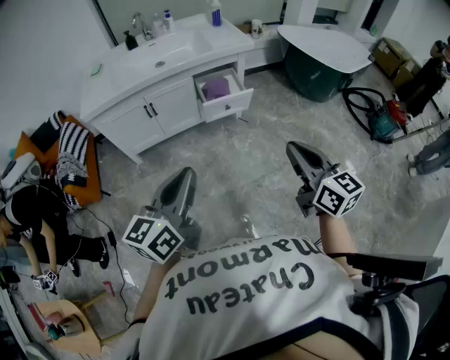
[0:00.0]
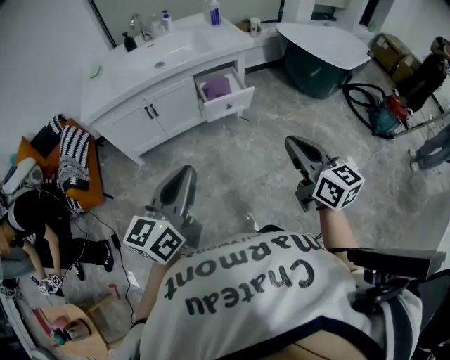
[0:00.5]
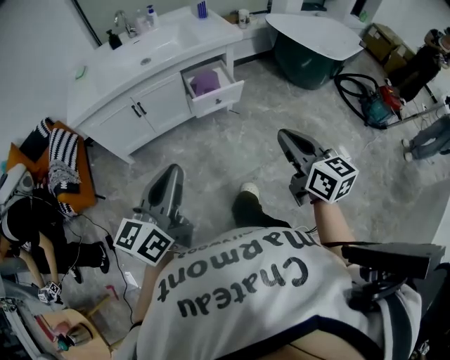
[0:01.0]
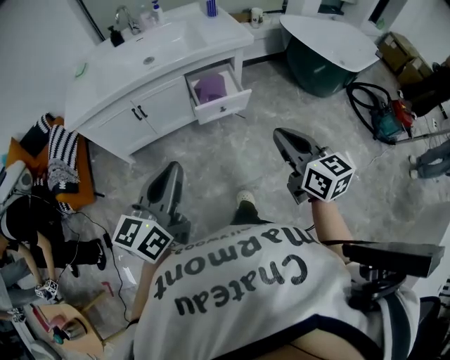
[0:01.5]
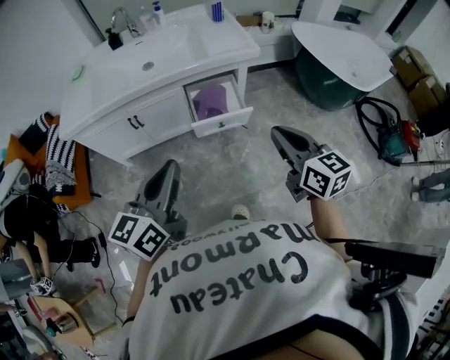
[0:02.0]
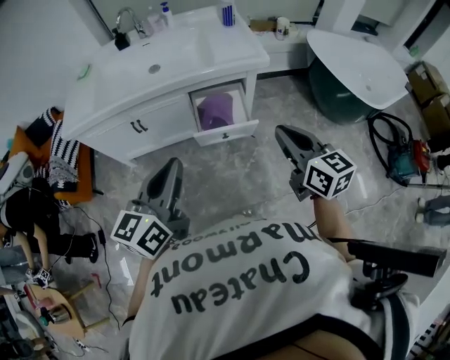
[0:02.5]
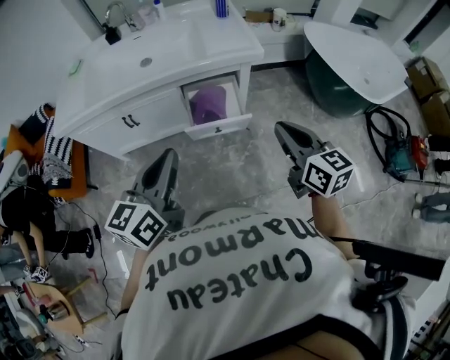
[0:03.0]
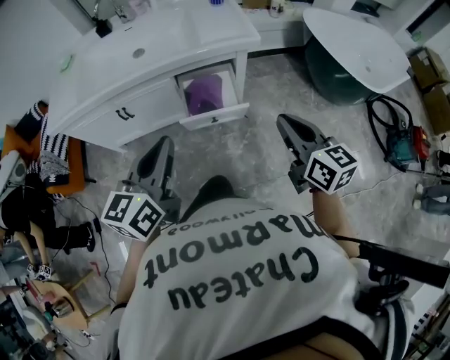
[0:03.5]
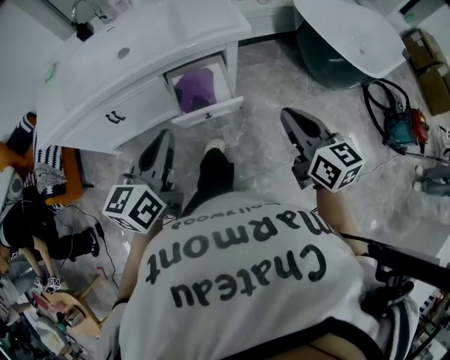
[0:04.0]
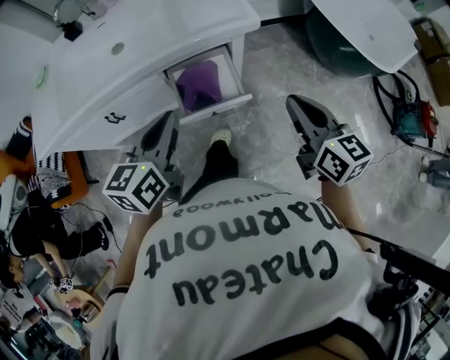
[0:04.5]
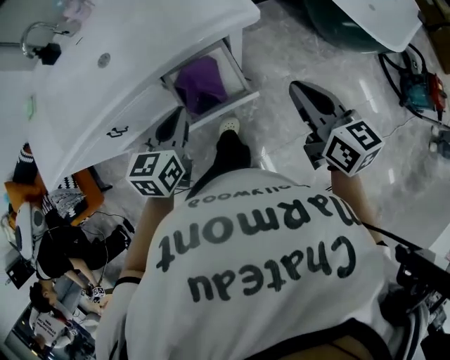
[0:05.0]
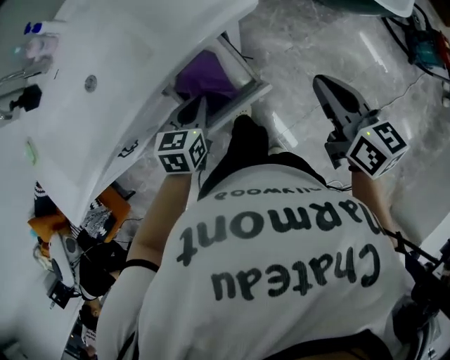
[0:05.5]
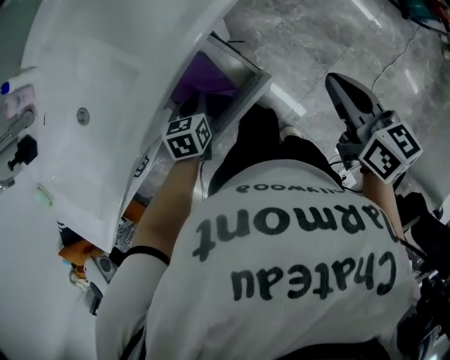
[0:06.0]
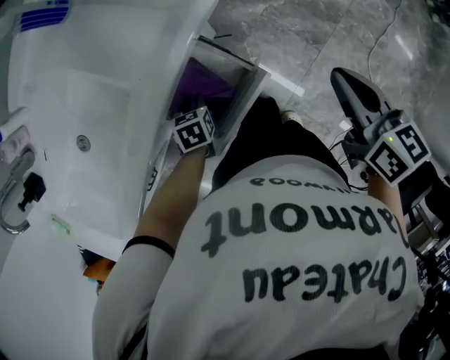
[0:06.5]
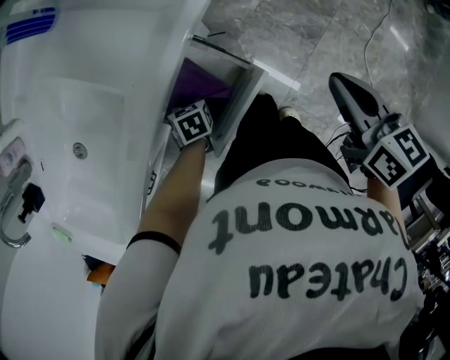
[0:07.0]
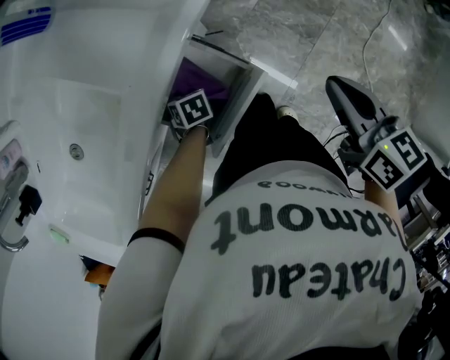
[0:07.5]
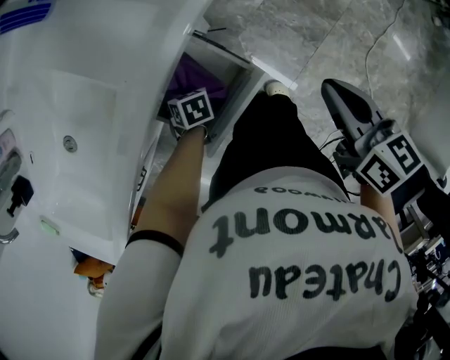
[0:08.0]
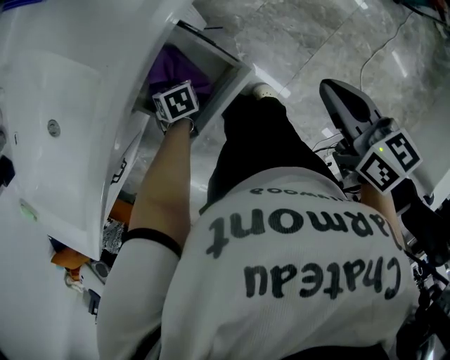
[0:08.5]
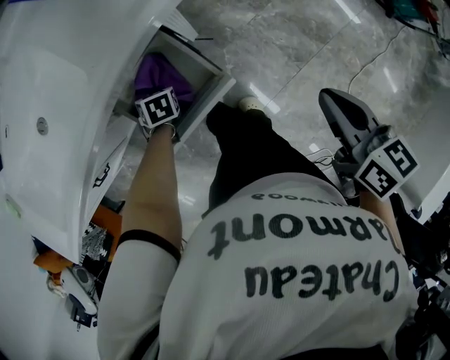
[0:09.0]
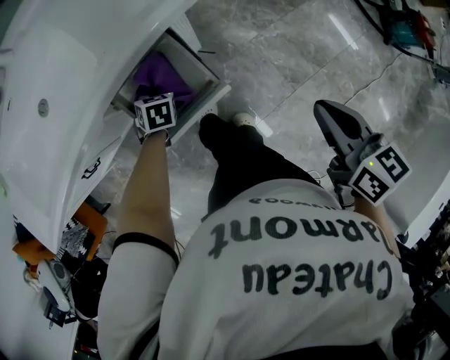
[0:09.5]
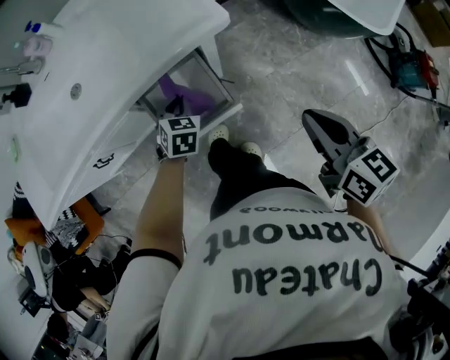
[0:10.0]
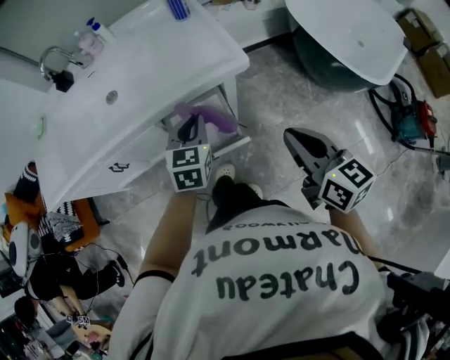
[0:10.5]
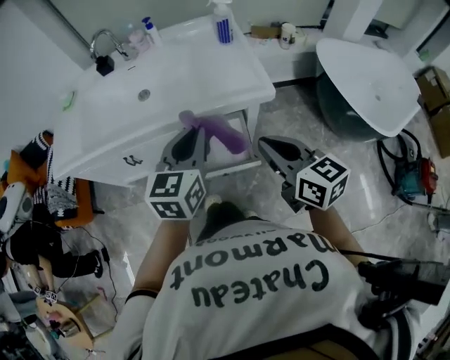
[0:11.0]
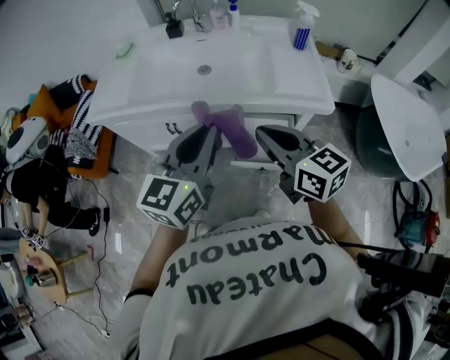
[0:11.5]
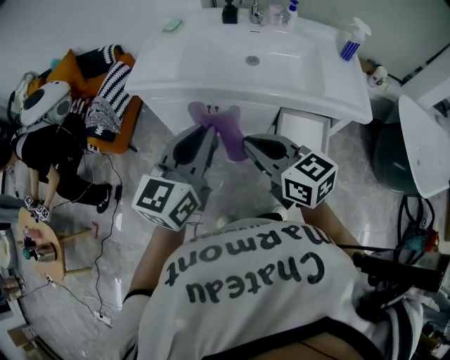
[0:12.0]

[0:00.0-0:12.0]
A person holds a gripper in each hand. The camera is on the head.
0.0 to 2.0 s: The two grippers go roughly 25 cm forward.
2.0 to 4.0 s: The left gripper shifts about 15 cm forward, to the right and downward; the right gripper goes some 15 cm forward and to the right.
4.0 to 6.0 s: The right gripper changes place by roughly 20 cm, and turns by roughly 40 degrees. The left gripper moves downward, some 30 cm, and angles its fingers downward, by some 40 degrees.
6.0 to 8.0 s: The left gripper moves downward, some 10 cm, and changes its angle by about 30 degrees.
8.0 to 10.0 s: The right gripper heads upward, covering roughly 5 cm, and changes its angle by approximately 30 degrees. Meanwhile the left gripper goes about 15 cm upward, and swivels approximately 30 degrees.
10.0 to 12.0 s: The left gripper shifts by roughly 50 cm, and angles its fingers upward, by approximately 50 degrees; the right gripper changes place by some 50 cm, and changes its angle by about 60 degrees.

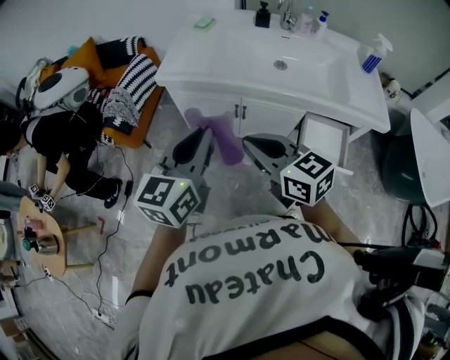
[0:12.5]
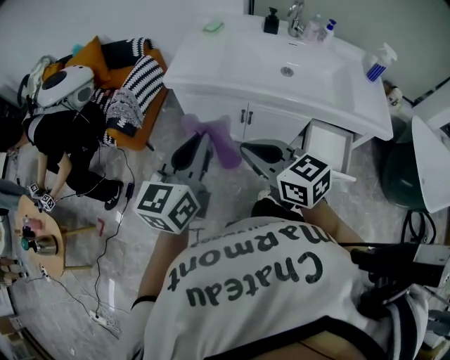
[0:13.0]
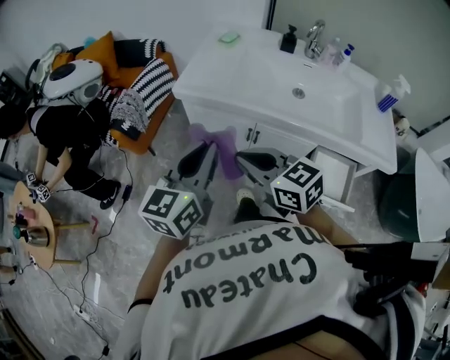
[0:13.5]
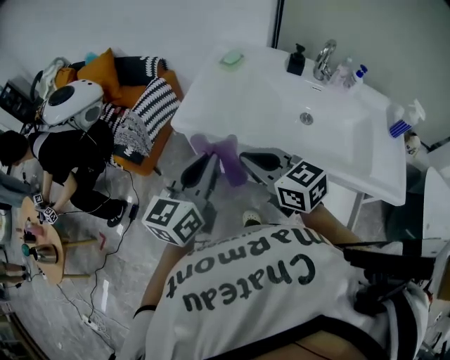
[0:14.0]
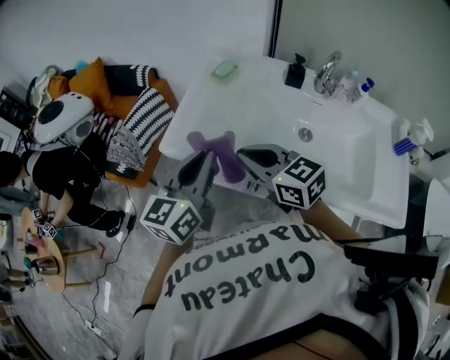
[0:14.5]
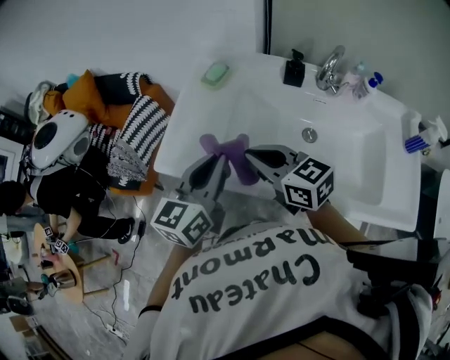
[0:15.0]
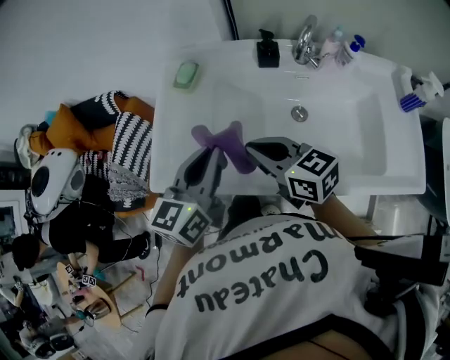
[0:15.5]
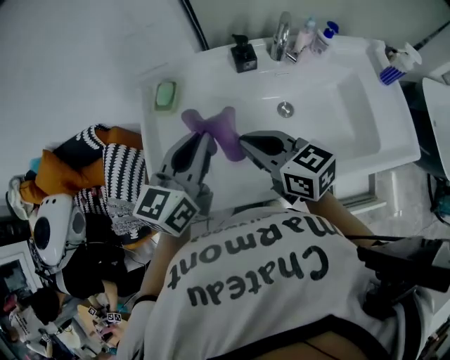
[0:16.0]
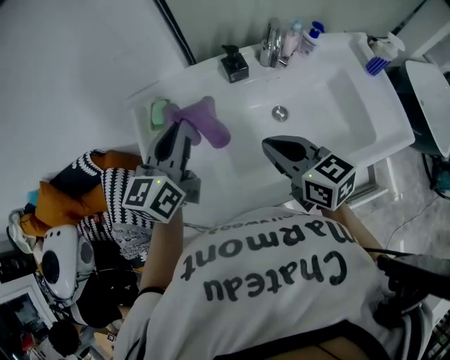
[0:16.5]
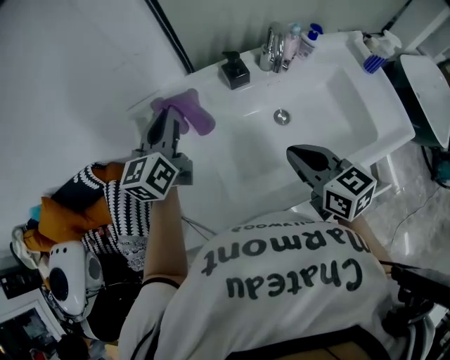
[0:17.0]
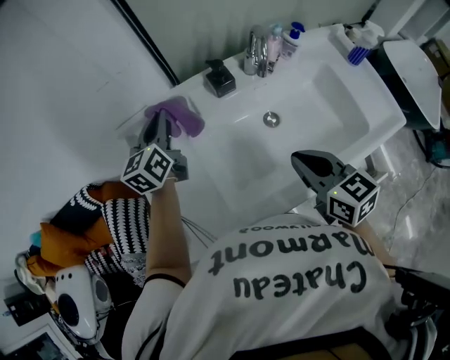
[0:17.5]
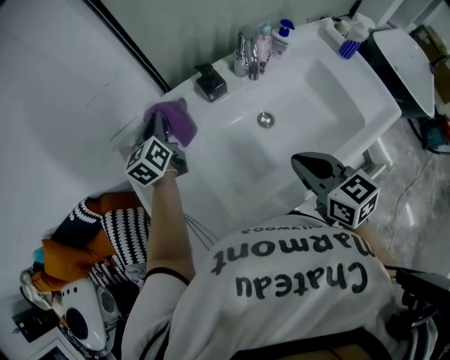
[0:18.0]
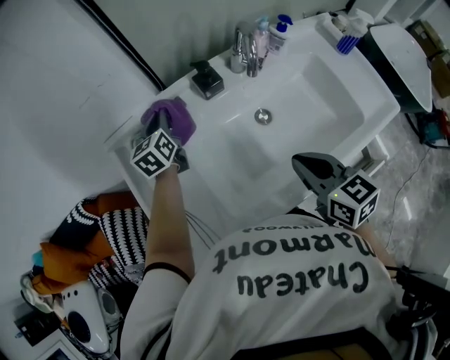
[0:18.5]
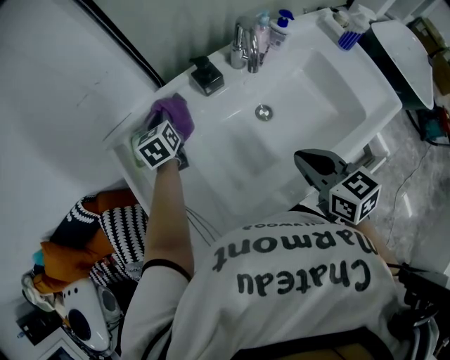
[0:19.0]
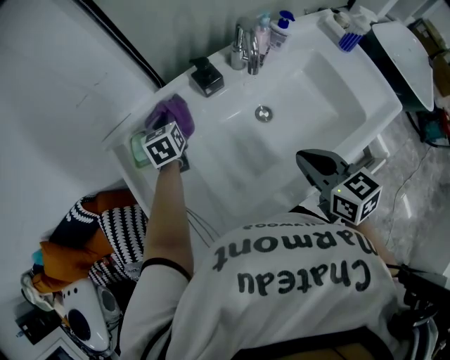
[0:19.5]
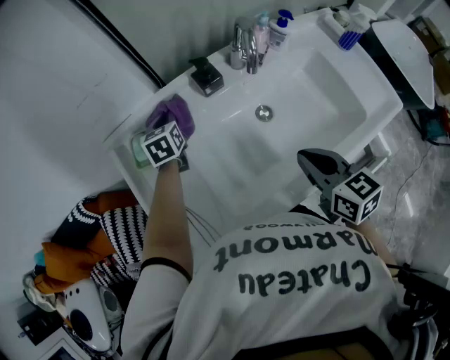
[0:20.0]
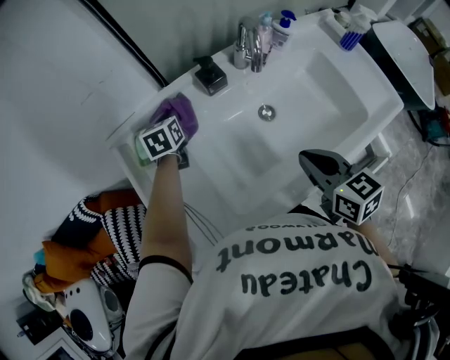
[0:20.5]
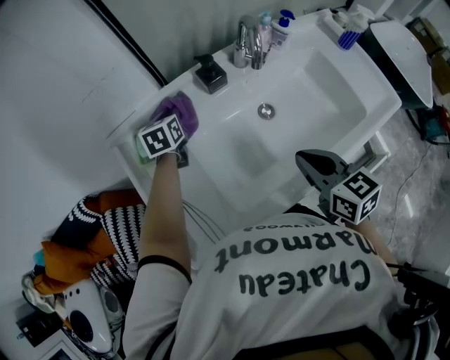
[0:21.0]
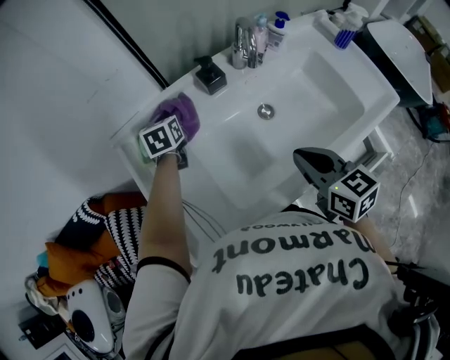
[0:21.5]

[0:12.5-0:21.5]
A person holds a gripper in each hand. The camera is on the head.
12.5 to 14.5 s: Both grippers travel together forward, roughly 30 cm.
14.5 to 17.0 s: The left gripper changes place by some 35 cm, and turns by some 30 degrees. Meanwhile the right gripper moves about 20 cm, and changes its angle by some 50 degrees.
17.0 to 19.5 s: The left gripper heads downward and forward, covering roughly 20 cm, and turns by roughly 30 degrees; the right gripper changes place by roughly 5 cm.
19.5 to 21.5 s: The left gripper opens up.

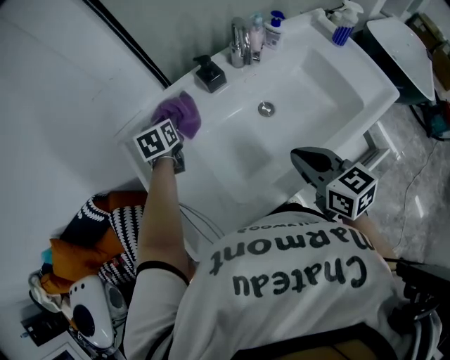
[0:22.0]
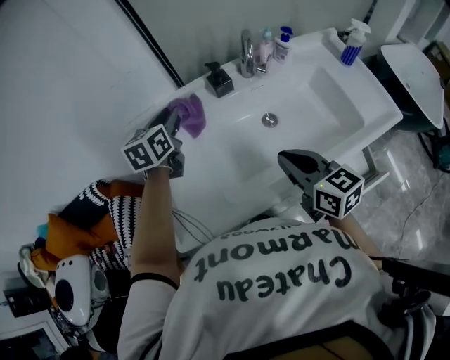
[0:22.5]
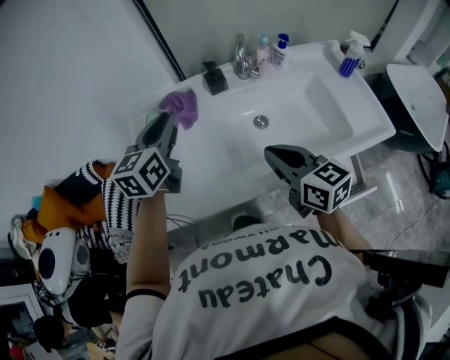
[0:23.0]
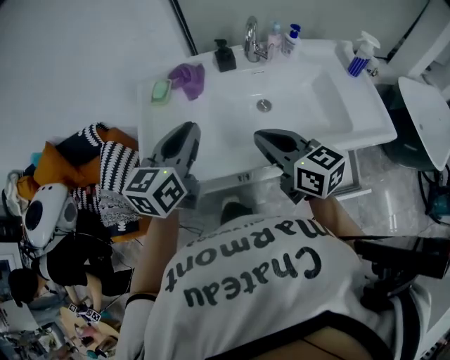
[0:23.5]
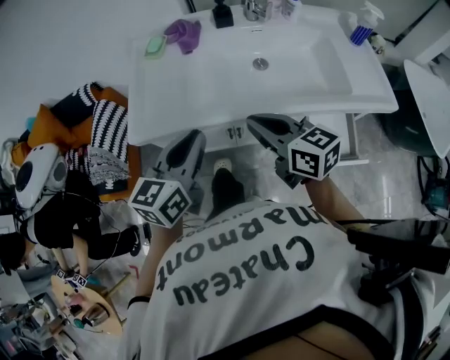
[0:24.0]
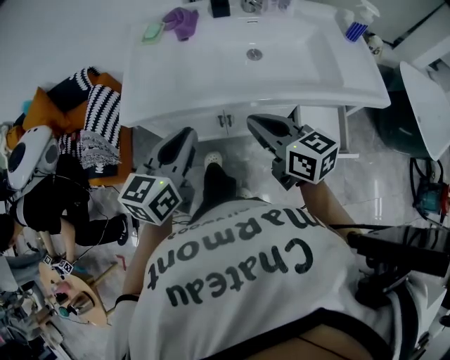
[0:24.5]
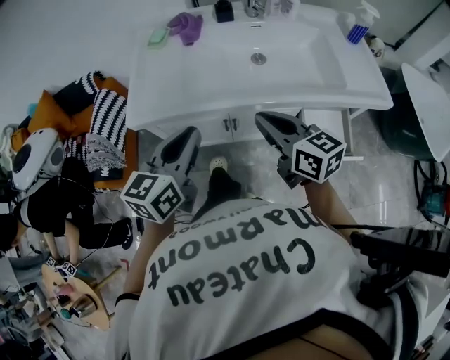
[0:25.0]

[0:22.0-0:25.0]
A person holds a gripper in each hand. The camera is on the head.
22.0 to 23.5 s: The right gripper is displaced backward and upward by some 10 cm, and turns by some 30 degrees, while the left gripper heads backward and upward, covering approximately 35 cm, and rotates approximately 30 degrees.
23.5 to 25.0 s: The left gripper heads backward, covering approximately 20 cm; the right gripper shifts about 15 cm backward and downward.

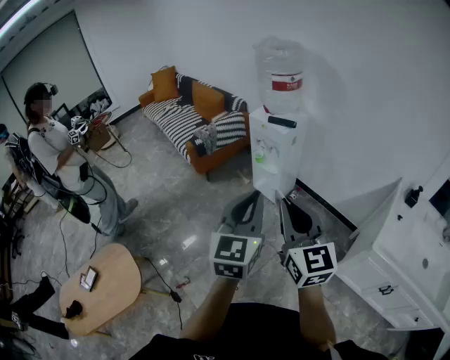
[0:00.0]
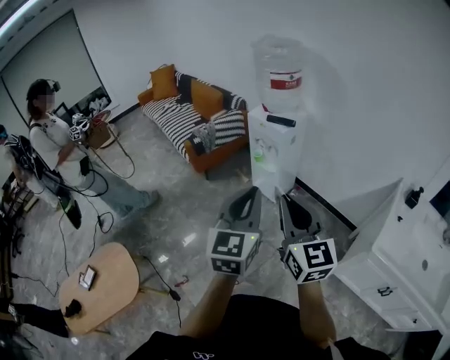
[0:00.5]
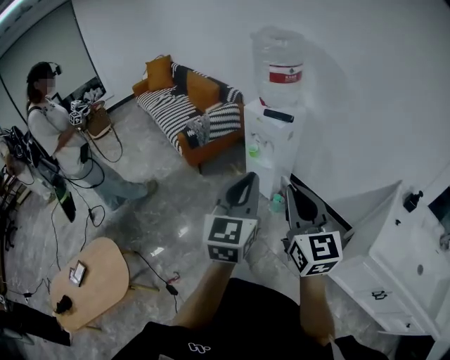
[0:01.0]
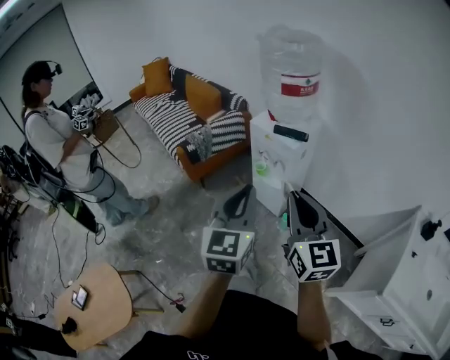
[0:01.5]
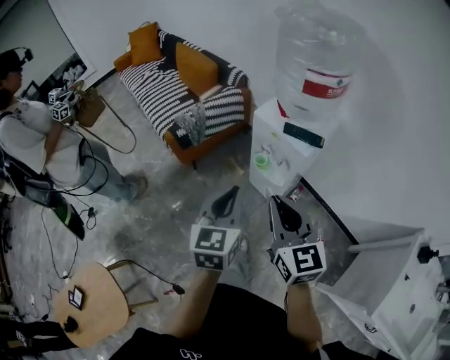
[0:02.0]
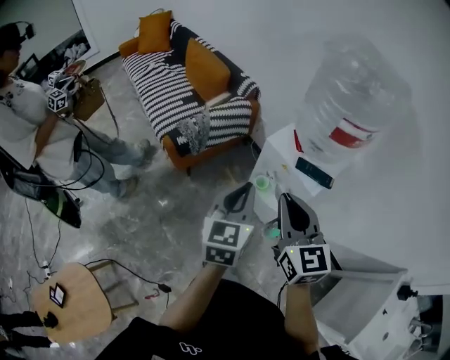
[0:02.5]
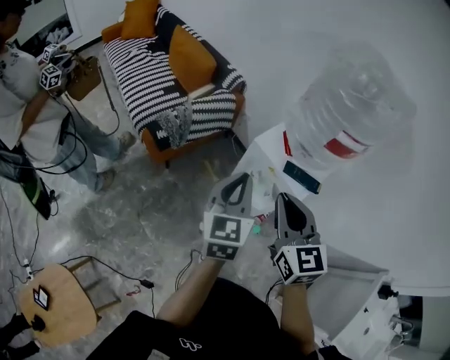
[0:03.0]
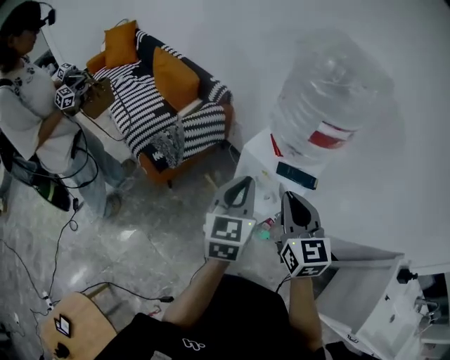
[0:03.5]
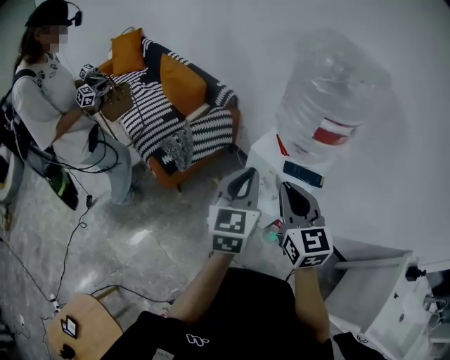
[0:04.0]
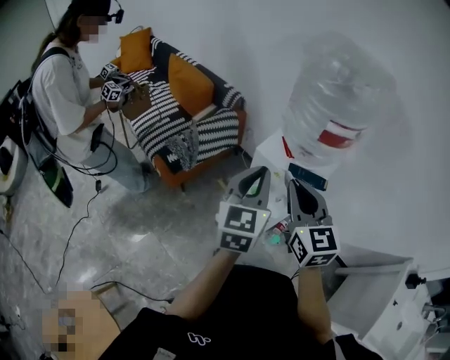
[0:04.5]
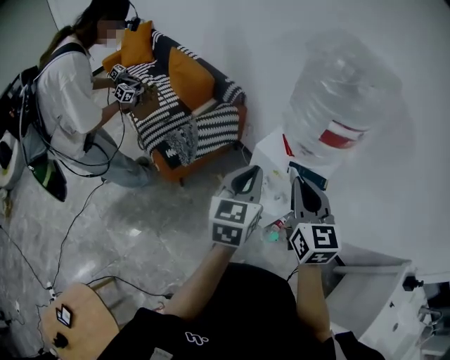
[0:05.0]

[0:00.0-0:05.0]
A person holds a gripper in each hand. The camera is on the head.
0.0 to 2.5 s: The two grippers travel together, forward, some 50 cm.
2.5 to 5.0 s: The left gripper moves forward, approximately 10 cm. The right gripper travels forward and to the right by some 10 cm.
